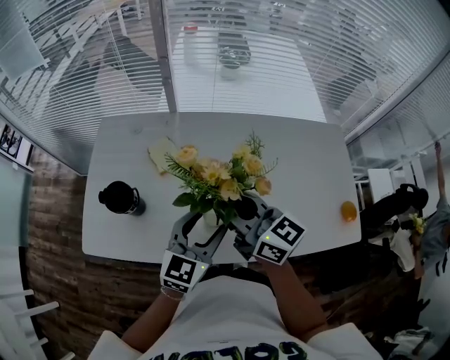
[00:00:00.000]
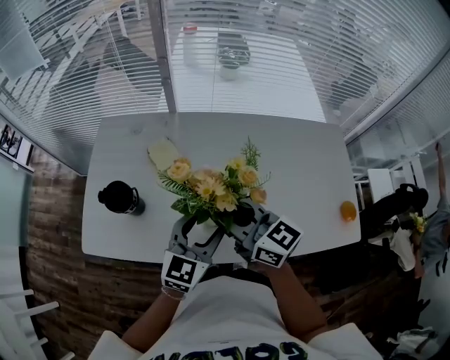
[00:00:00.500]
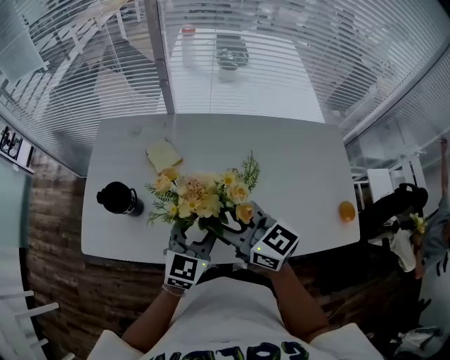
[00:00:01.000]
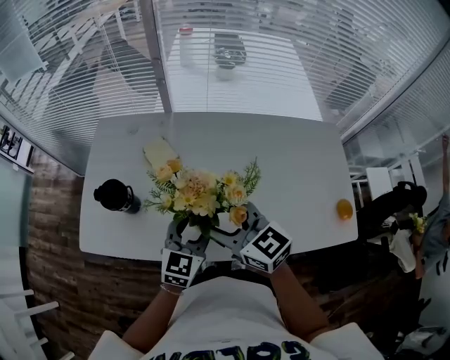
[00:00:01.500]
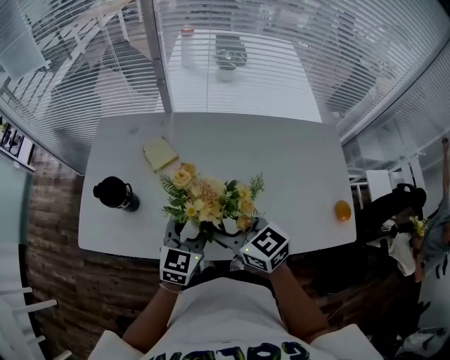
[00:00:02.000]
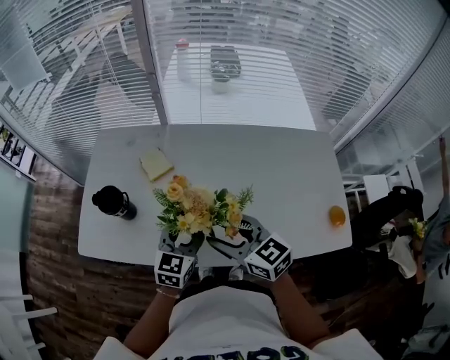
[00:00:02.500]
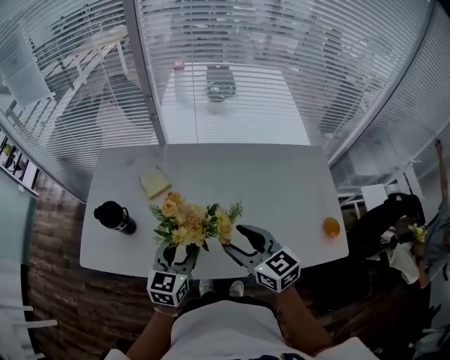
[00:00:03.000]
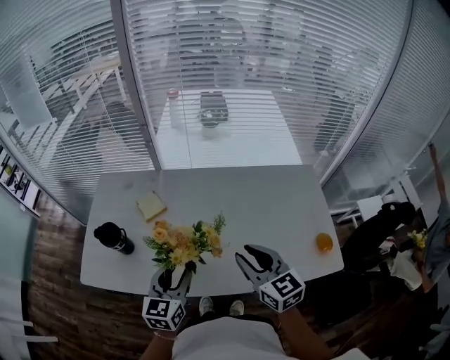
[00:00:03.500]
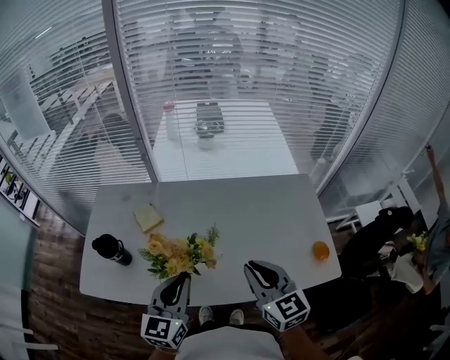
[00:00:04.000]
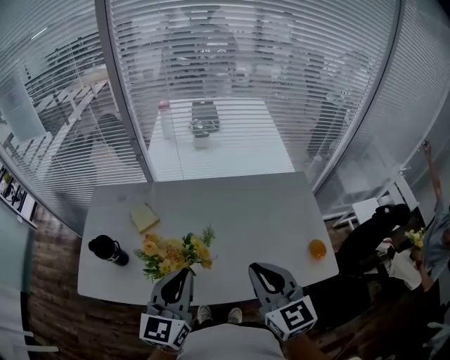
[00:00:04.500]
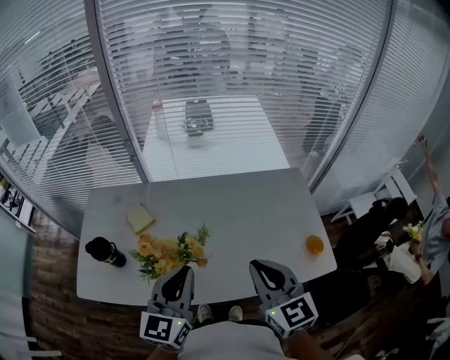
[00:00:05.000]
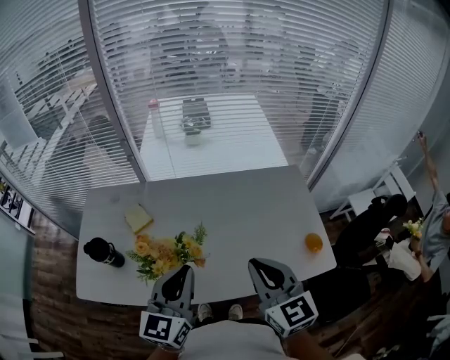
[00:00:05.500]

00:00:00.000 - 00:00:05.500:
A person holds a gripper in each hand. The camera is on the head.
00:00:00.000 - 00:00:02.000: The right gripper is displaced downward and backward by some 10 cm, changes its angle by some 20 degrees, and opens up. Meanwhile the left gripper goes about 5 cm downward.
00:00:02.000 - 00:00:03.500: The left gripper shifts approximately 10 cm upward and backward. The right gripper moves to the right, about 15 cm, changes its angle by about 20 degrees, and closes its fingers.
00:00:03.500 - 00:00:05.500: Both grippers travel together upward and to the right, some 10 cm. The left gripper closes up. Meanwhile the right gripper closes.

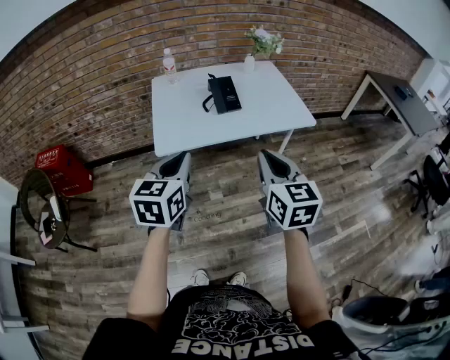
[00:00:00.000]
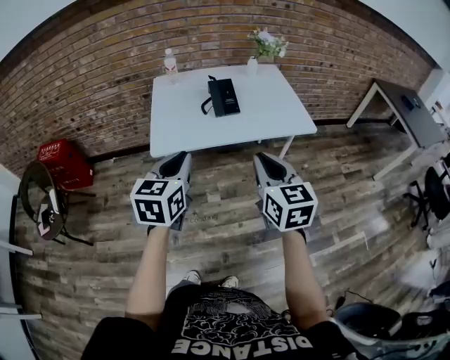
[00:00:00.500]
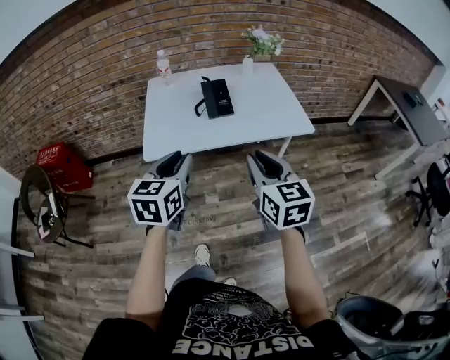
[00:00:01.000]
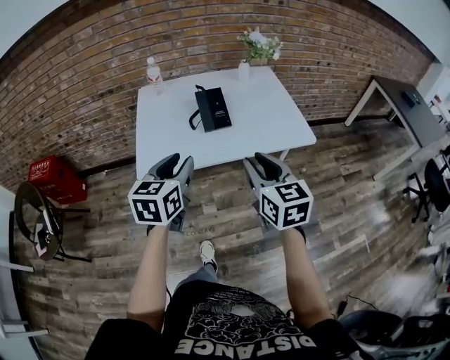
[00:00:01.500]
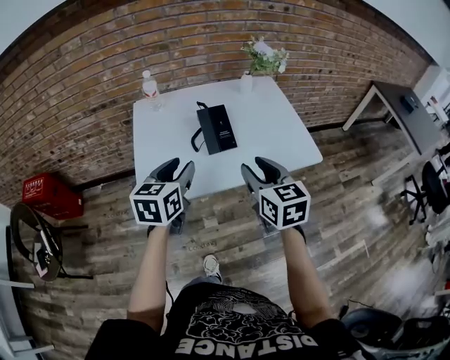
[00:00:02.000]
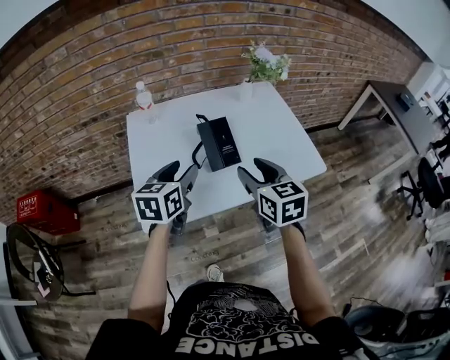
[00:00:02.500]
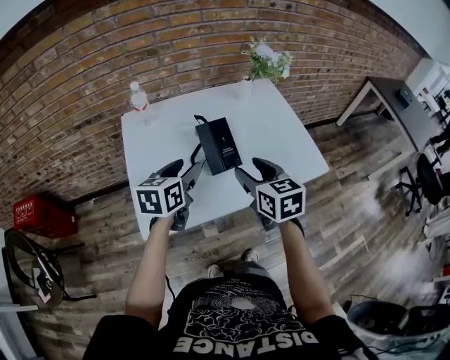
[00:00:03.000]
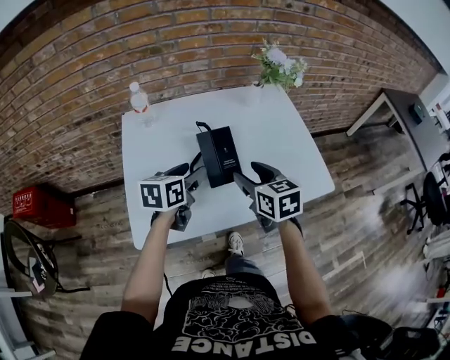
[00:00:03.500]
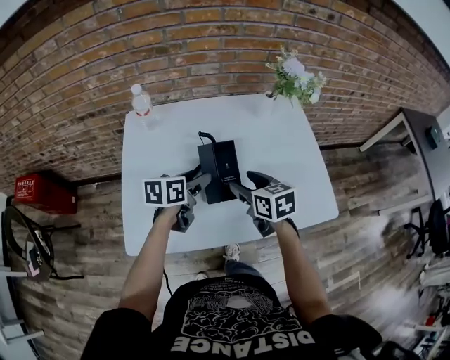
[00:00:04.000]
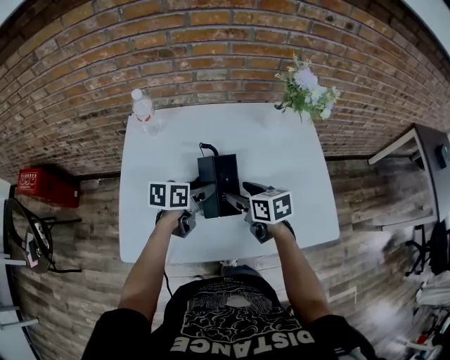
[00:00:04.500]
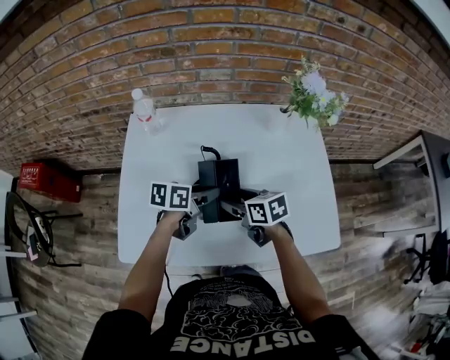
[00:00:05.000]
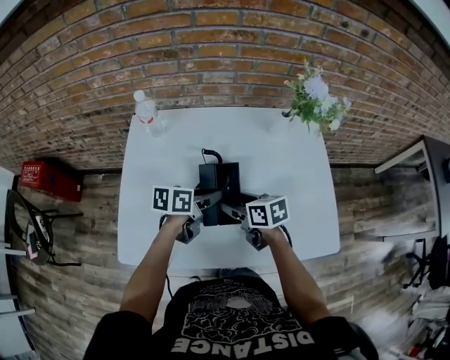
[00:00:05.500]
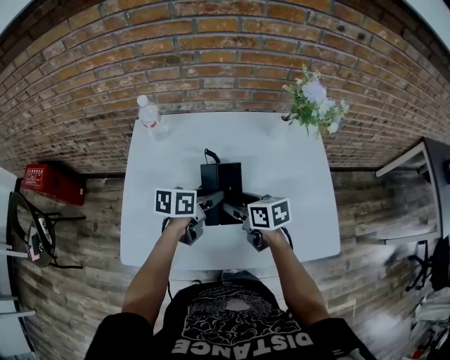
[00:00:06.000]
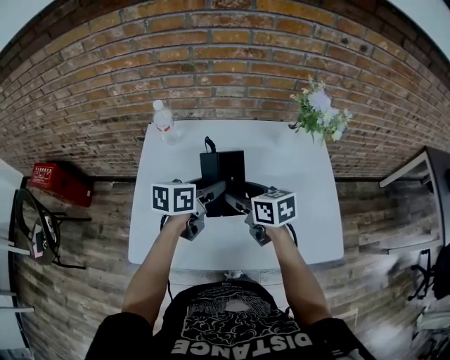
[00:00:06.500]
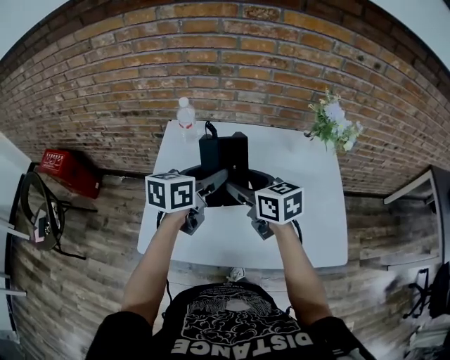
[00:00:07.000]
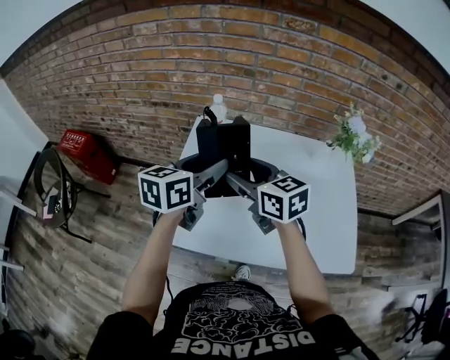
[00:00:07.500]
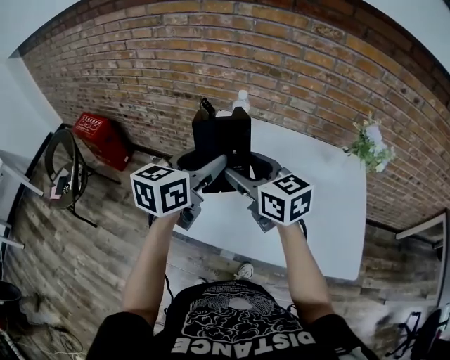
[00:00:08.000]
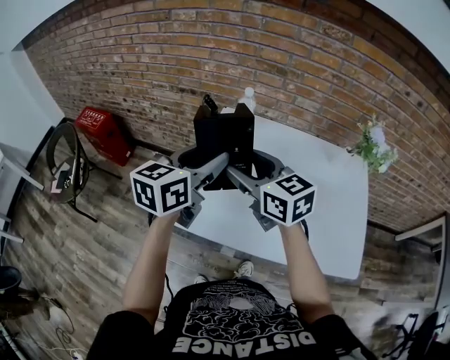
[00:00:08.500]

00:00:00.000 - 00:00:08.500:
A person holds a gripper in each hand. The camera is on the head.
00:00:00.000 - 00:00:02.000: The grippers both shift forward by some 25 cm. The left gripper opens its fingers. The right gripper opens.
00:00:02.000 - 00:00:04.000: Both grippers move forward and downward, some 25 cm. The left gripper turns by roughly 30 degrees, and opens up. The right gripper turns by some 20 degrees, and opens up.
00:00:04.000 - 00:00:06.500: The left gripper travels upward by about 5 cm. Meanwhile the right gripper moves forward, about 5 cm, and reaches about 5 cm downward, then returns.
00:00:06.500 - 00:00:08.500: The grippers both shift to the left and upward by some 25 cm. The right gripper changes its angle by some 30 degrees, while the left gripper turns by about 30 degrees.

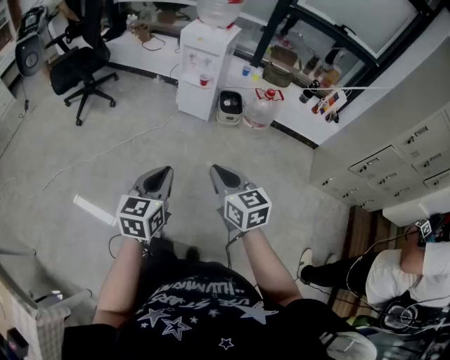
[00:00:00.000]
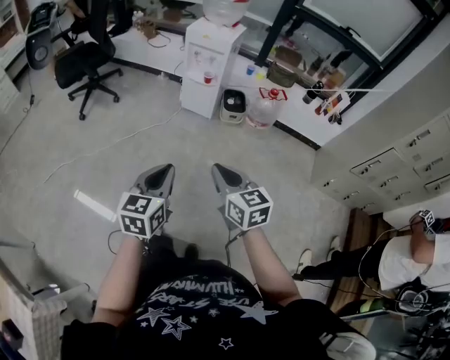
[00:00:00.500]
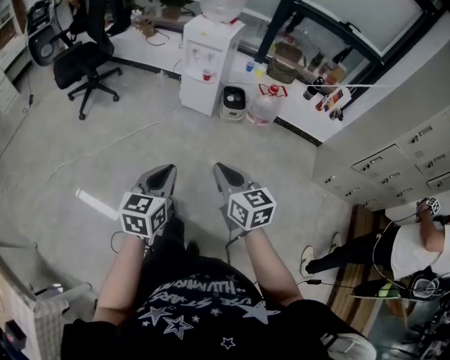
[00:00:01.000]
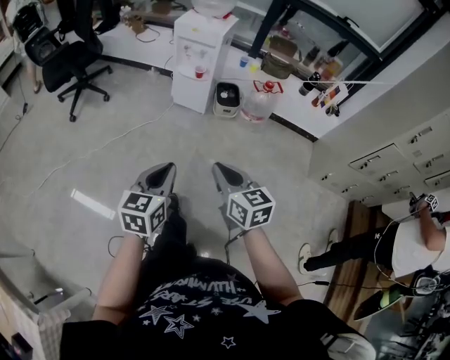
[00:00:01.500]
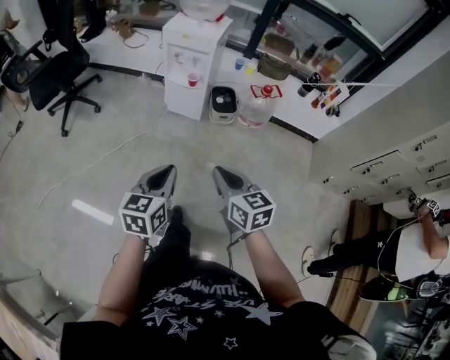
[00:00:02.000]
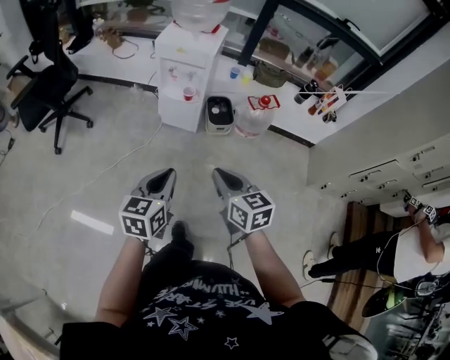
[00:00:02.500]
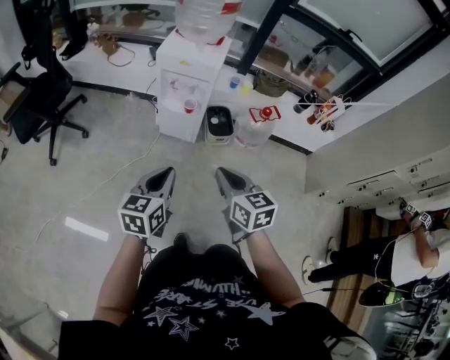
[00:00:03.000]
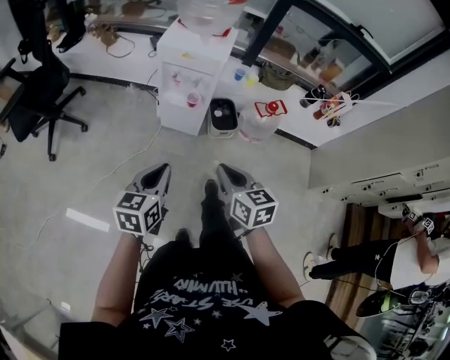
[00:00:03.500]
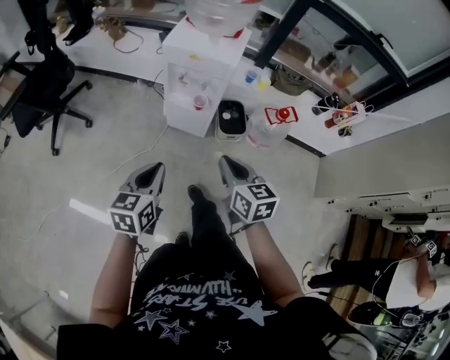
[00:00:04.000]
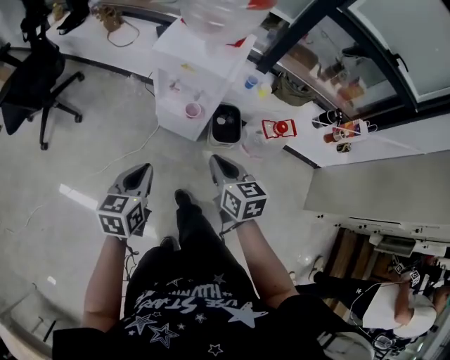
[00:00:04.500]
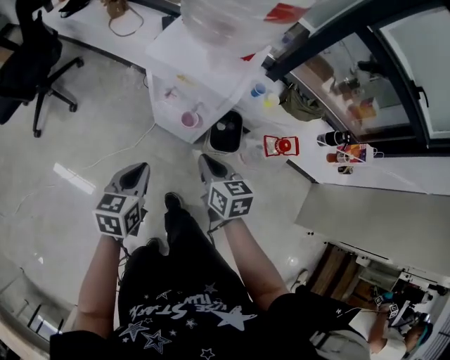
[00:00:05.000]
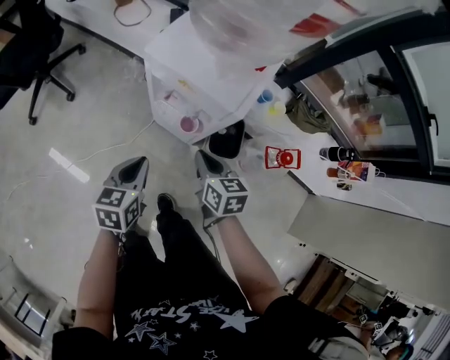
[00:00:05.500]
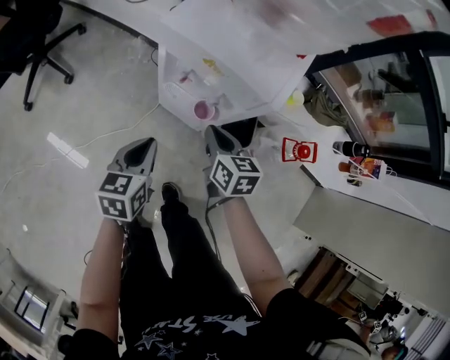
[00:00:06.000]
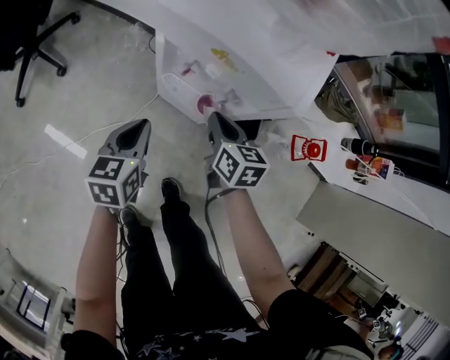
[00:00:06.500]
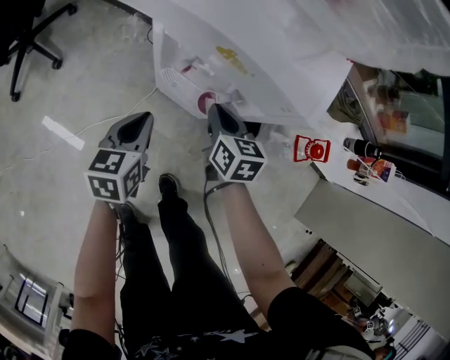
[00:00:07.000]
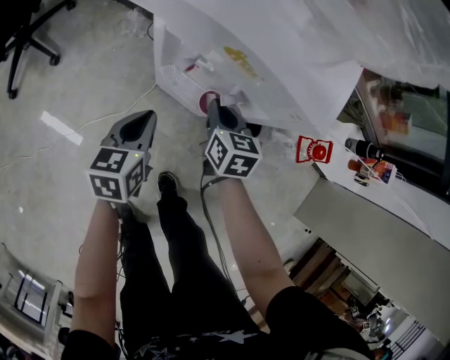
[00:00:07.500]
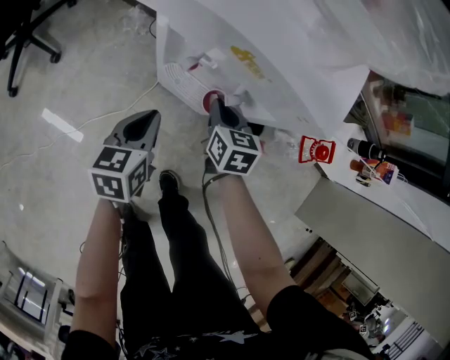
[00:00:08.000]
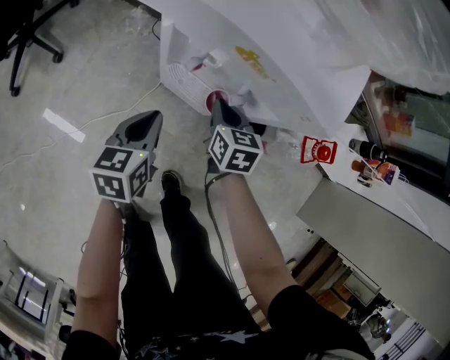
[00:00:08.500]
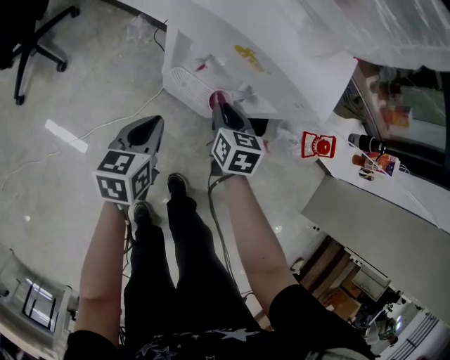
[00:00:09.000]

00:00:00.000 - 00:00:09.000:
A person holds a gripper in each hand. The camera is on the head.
00:00:00.000 - 00:00:02.000: Both grippers travel together forward, roughly 15 cm.
00:00:02.000 - 00:00:04.500: The pair of grippers is taken forward, roughly 40 cm.
00:00:04.500 - 00:00:07.000: Both grippers travel together forward and downward, approximately 35 cm.
00:00:07.000 - 00:00:09.000: The grippers stay close to where they were, moving slightly.

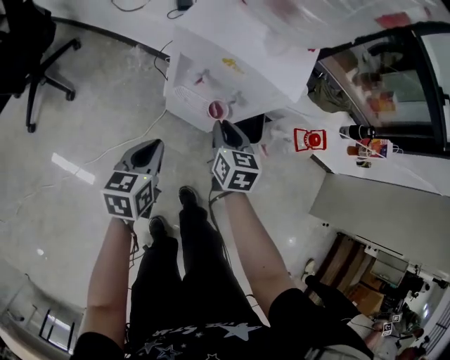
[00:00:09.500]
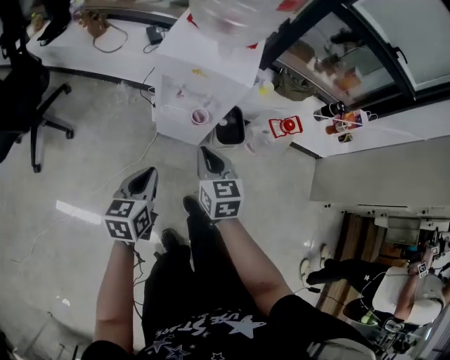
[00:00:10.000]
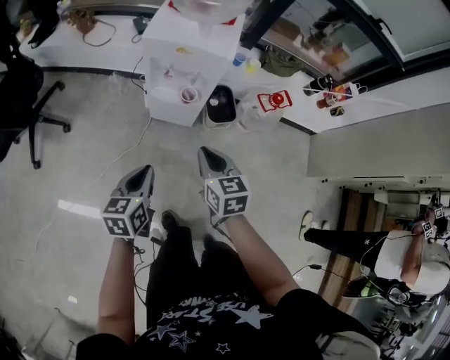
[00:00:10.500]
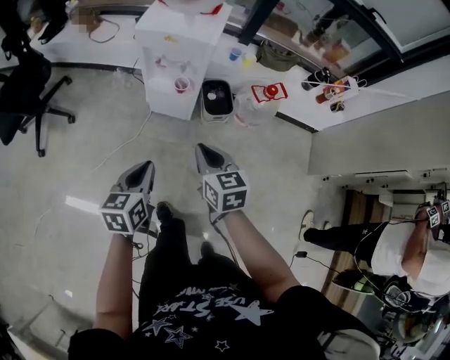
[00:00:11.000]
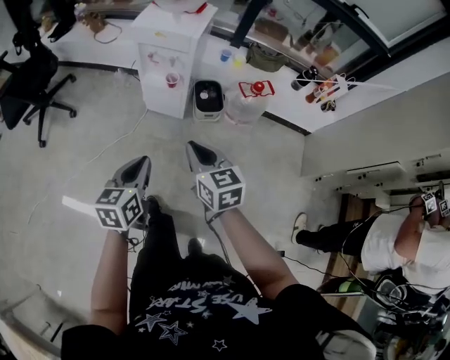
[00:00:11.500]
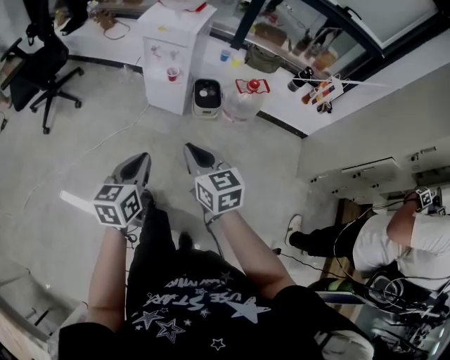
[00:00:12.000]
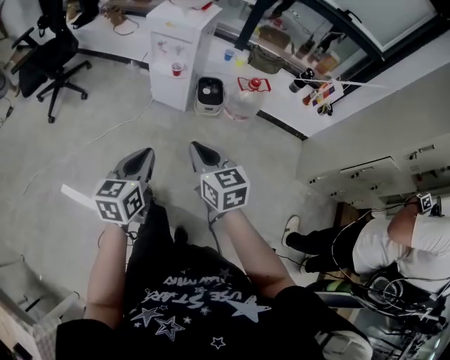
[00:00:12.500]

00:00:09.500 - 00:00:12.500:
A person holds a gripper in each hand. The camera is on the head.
00:00:09.500 - 00:00:11.000: Both grippers travel together backward and upward, approximately 30 cm.
00:00:11.000 - 00:00:12.500: The left gripper goes about 30 cm backward and to the right; the right gripper moves backward, approximately 25 cm.
